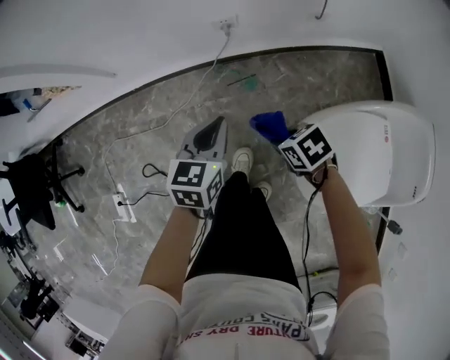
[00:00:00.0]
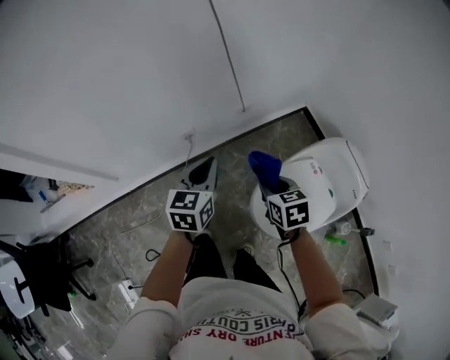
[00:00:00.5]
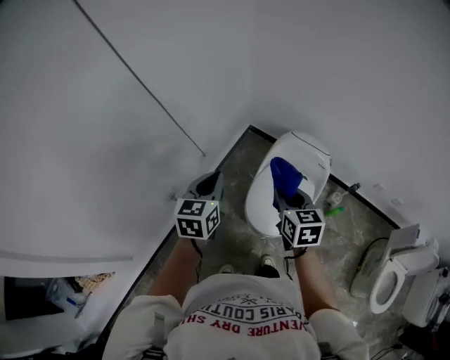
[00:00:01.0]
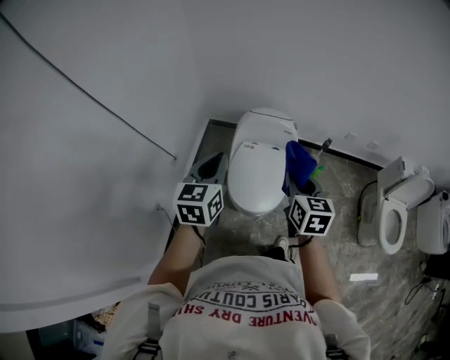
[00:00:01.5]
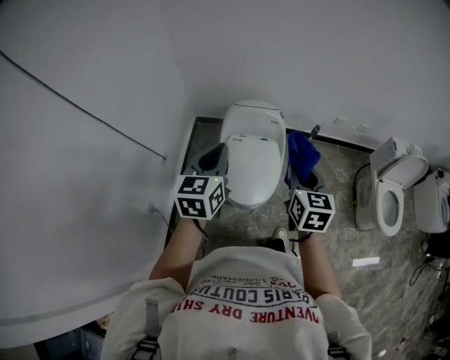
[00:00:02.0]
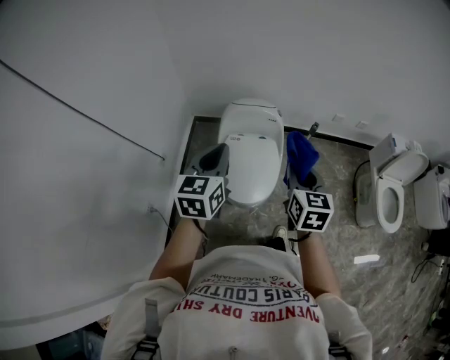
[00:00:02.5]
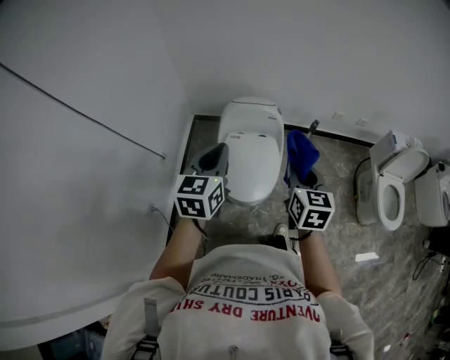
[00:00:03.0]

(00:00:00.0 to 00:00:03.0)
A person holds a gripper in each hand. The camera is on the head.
00:00:00.0 - 00:00:01.5: Both grippers travel together upward, roughly 50 cm. The left gripper changes its angle by approximately 70 degrees. The right gripper tilts its fingers about 40 degrees upward.
00:00:01.5 - 00:00:03.0: Both grippers travel together to the right, some 5 cm.

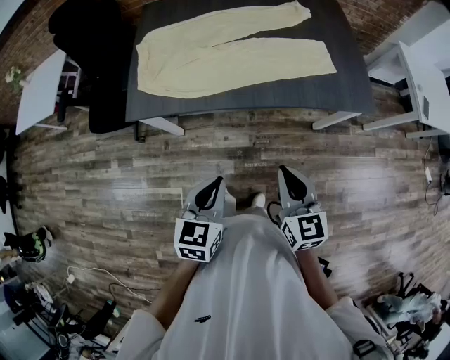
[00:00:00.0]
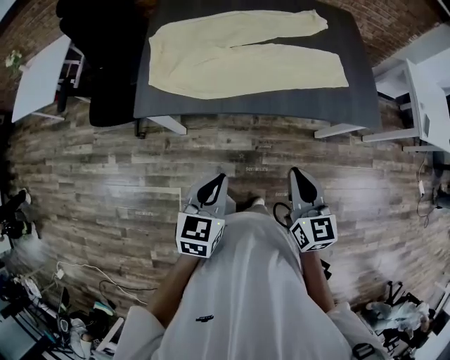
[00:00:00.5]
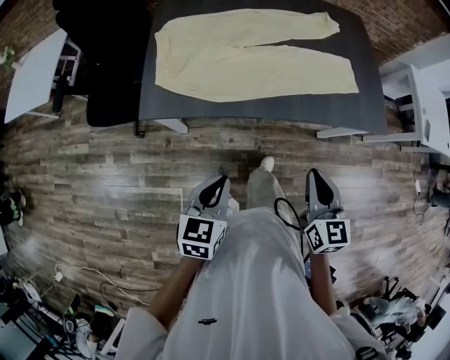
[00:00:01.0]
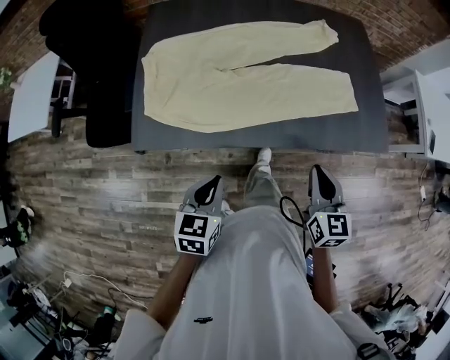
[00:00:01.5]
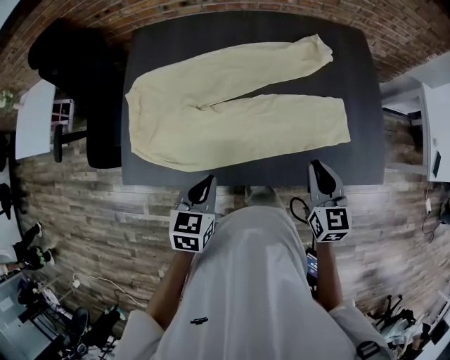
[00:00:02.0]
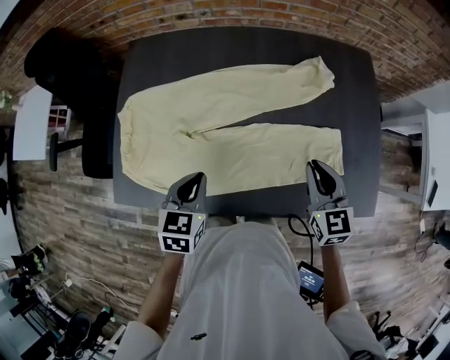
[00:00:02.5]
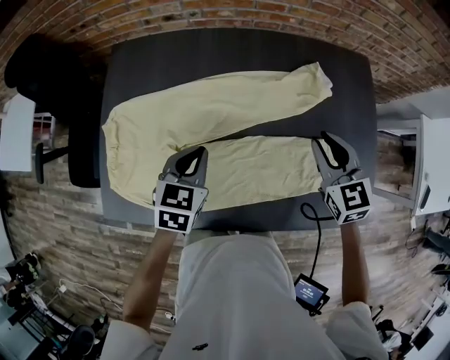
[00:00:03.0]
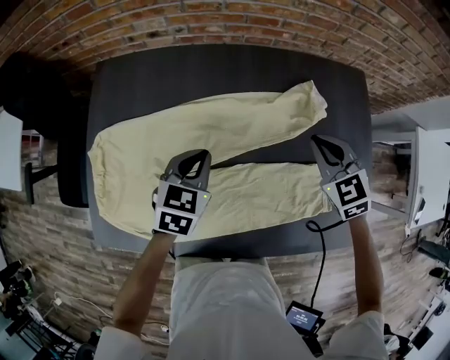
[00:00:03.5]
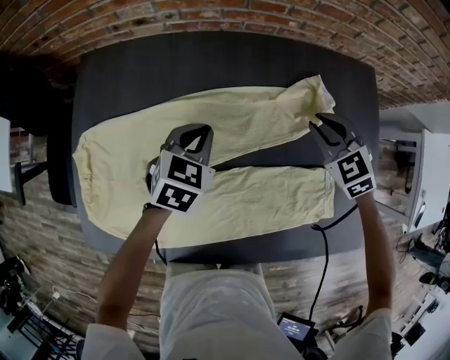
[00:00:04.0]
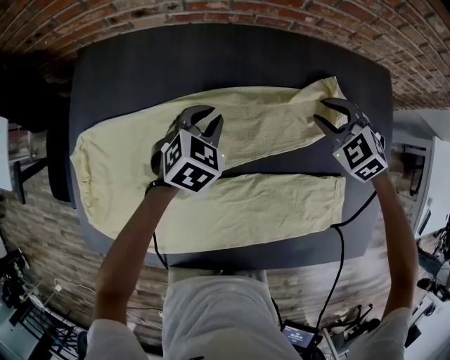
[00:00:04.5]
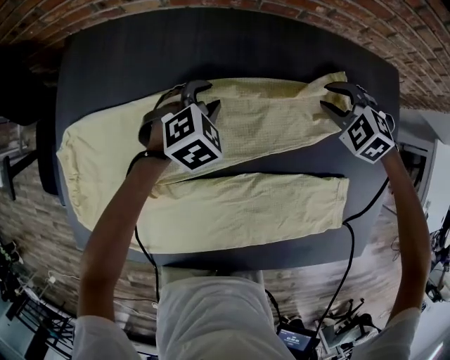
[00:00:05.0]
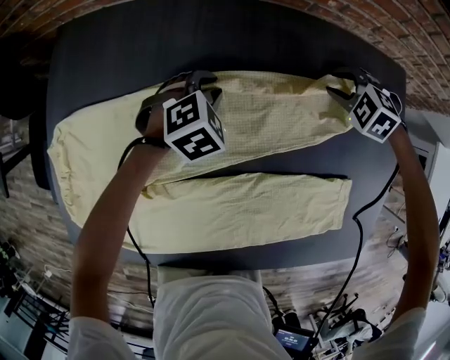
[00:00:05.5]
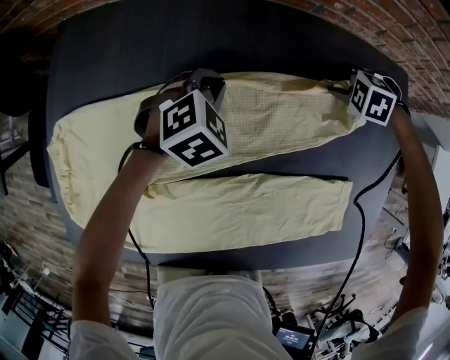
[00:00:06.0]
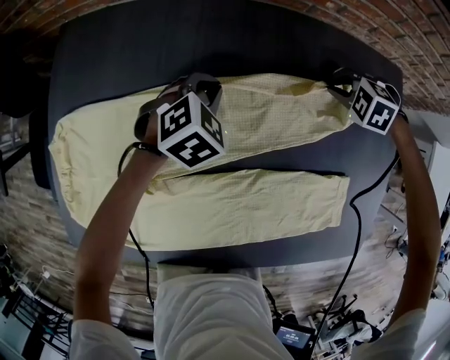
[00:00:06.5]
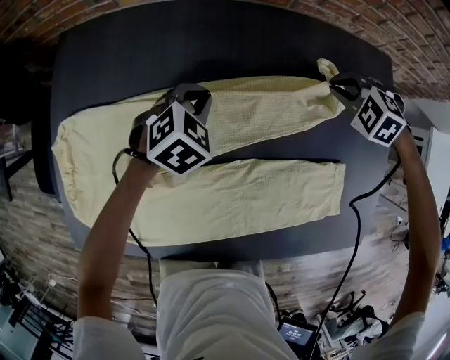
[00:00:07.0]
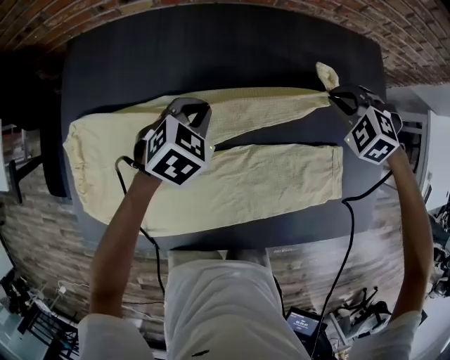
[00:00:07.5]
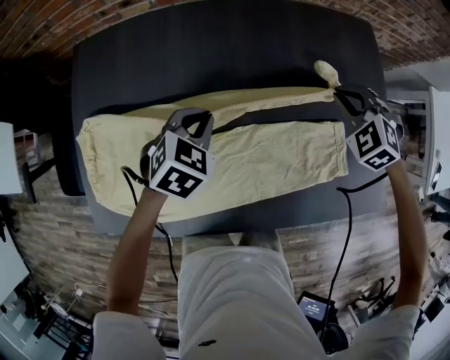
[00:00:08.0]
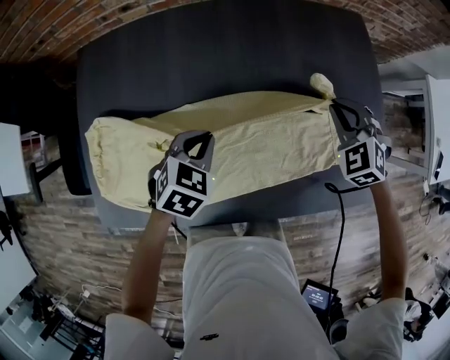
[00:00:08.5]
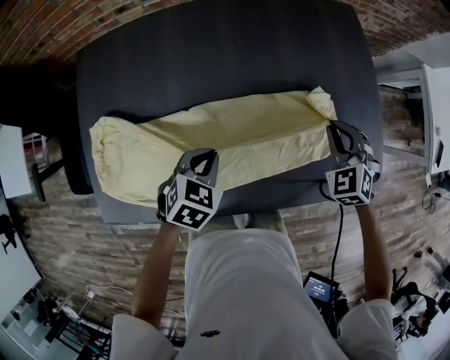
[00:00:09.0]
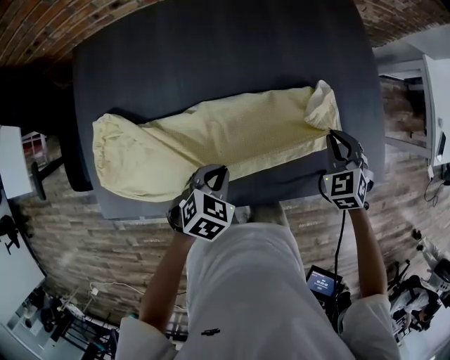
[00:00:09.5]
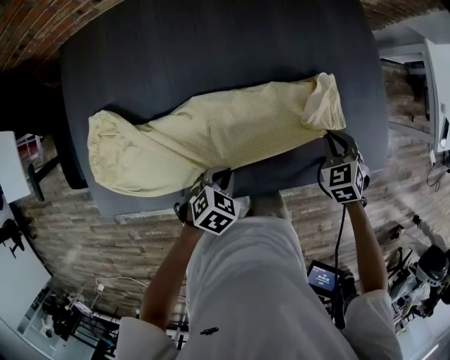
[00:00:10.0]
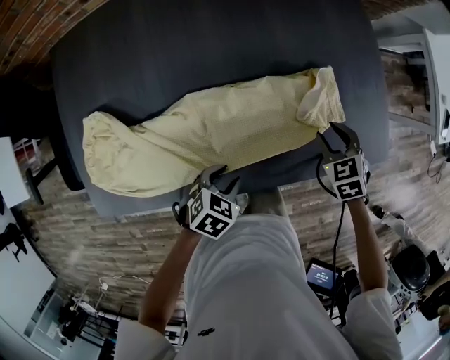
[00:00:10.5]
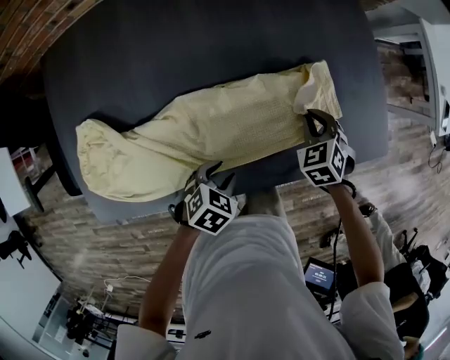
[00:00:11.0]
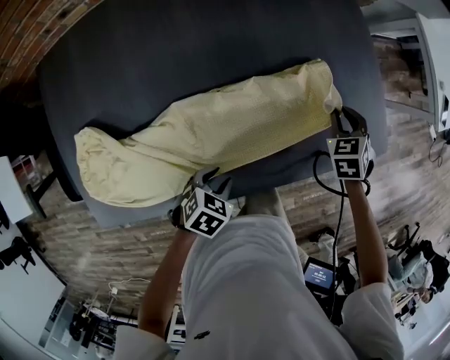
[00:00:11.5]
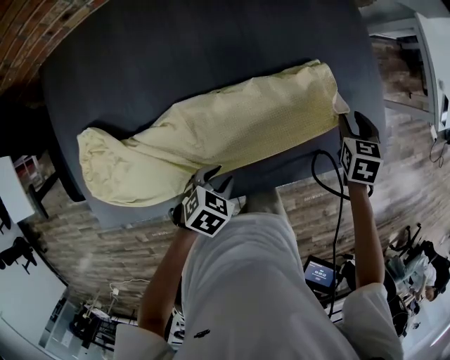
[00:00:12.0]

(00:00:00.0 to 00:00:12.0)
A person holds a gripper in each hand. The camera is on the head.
00:00:00.0 - 00:00:02.0: The grippers both shift forward by roughly 35 cm.
00:00:02.0 - 00:00:04.0: The two grippers go approximately 40 cm forward. The right gripper swivels roughly 50 degrees, while the left gripper rotates about 20 degrees.
00:00:04.0 - 00:00:06.0: Both grippers move downward, some 15 cm. The right gripper tilts its fingers roughly 40 degrees downward. The left gripper turns by roughly 30 degrees, and opens and closes again.
00:00:06.0 - 00:00:08.0: The left gripper changes place by some 20 cm. The right gripper moves about 25 cm, and tips its fingers upward by some 30 degrees.
00:00:08.0 - 00:00:10.0: The two grippers go some 30 cm backward, to the right and downward. The right gripper turns by some 40 degrees.
00:00:10.0 - 00:00:12.0: The left gripper opens up. Meanwhile the right gripper goes some 10 cm forward and to the right, rotates some 40 degrees, and opens.

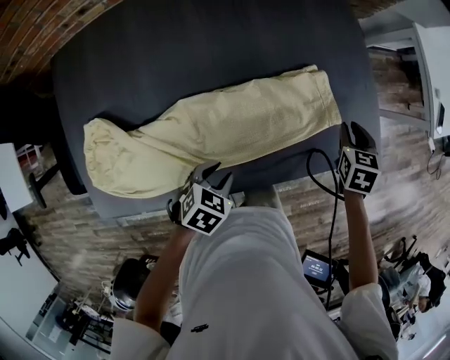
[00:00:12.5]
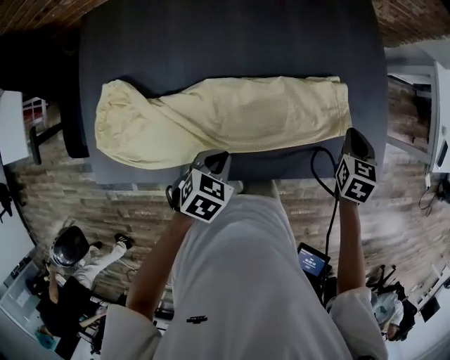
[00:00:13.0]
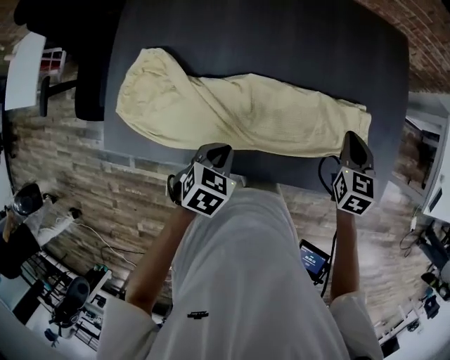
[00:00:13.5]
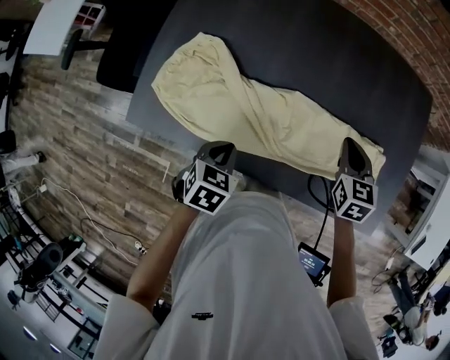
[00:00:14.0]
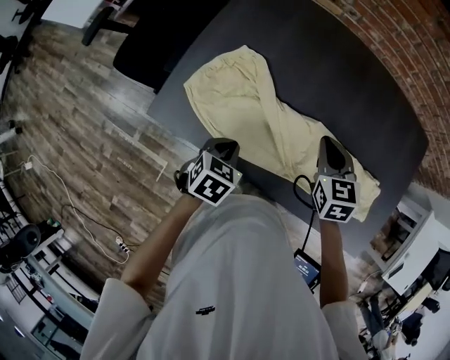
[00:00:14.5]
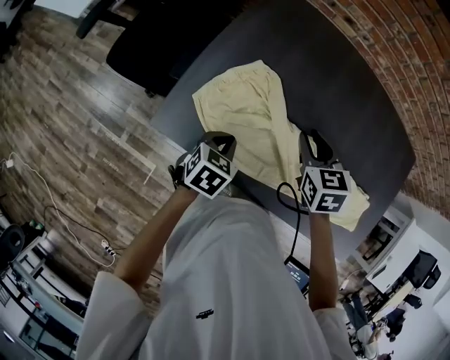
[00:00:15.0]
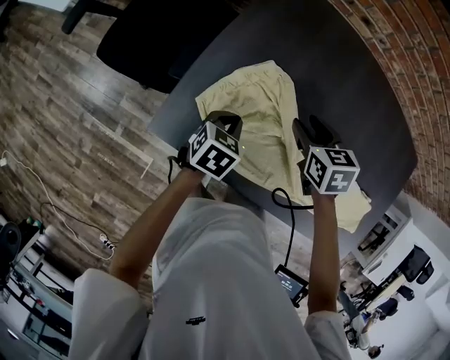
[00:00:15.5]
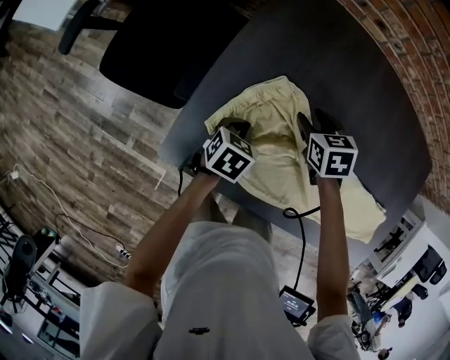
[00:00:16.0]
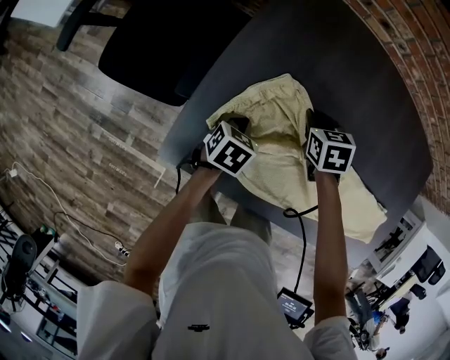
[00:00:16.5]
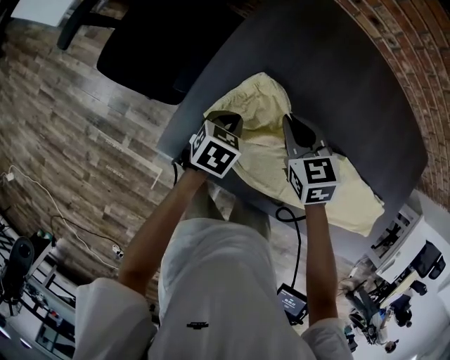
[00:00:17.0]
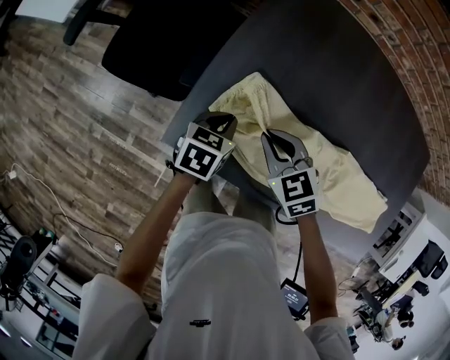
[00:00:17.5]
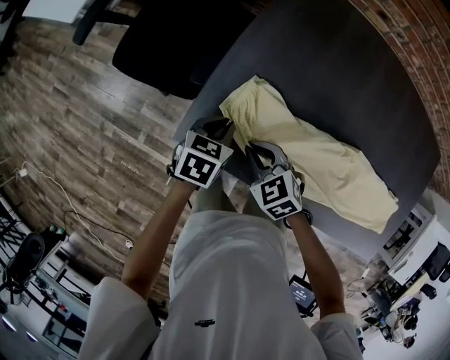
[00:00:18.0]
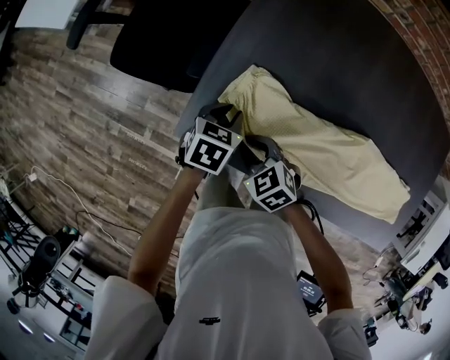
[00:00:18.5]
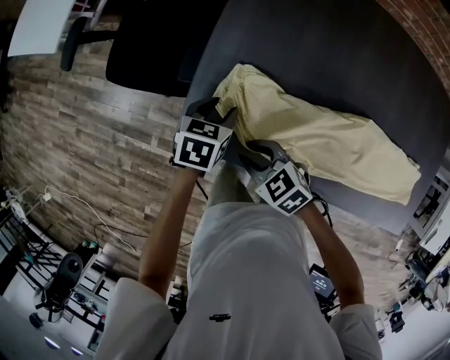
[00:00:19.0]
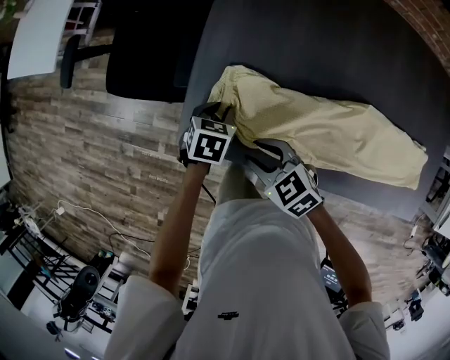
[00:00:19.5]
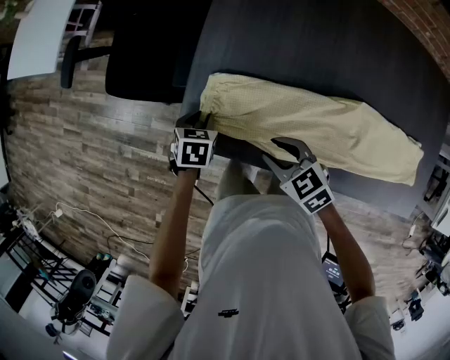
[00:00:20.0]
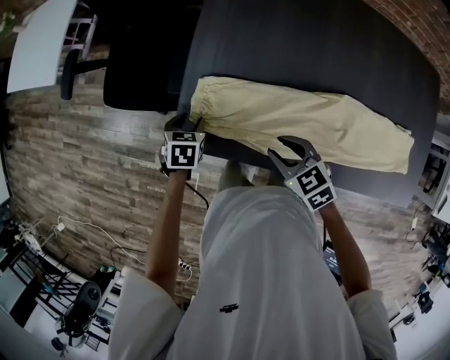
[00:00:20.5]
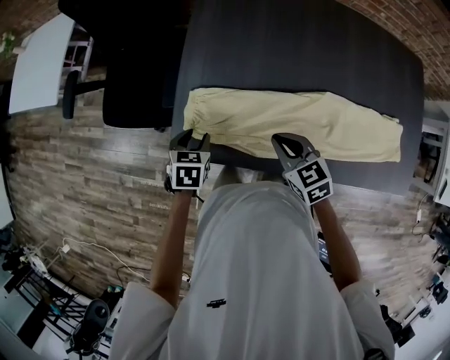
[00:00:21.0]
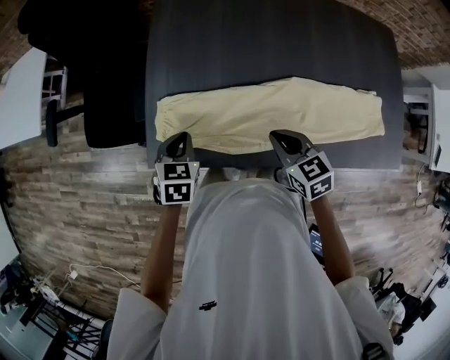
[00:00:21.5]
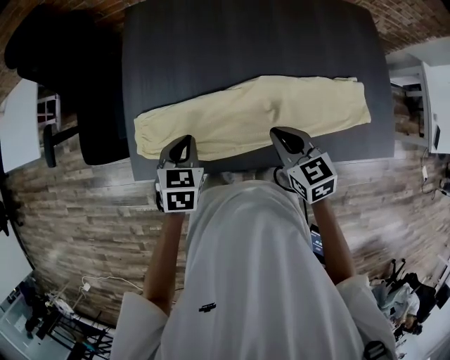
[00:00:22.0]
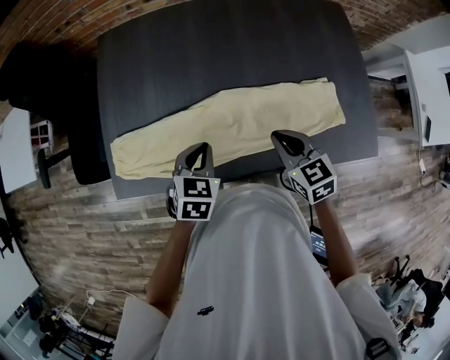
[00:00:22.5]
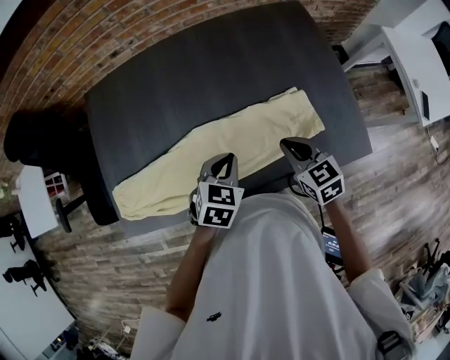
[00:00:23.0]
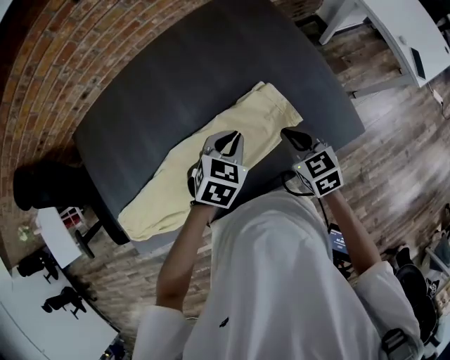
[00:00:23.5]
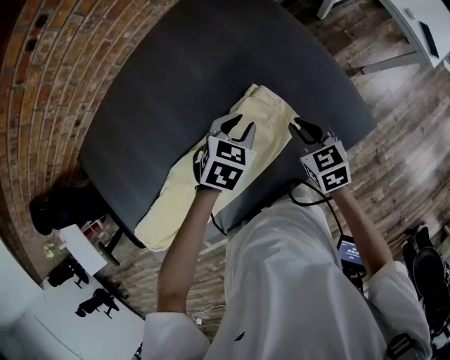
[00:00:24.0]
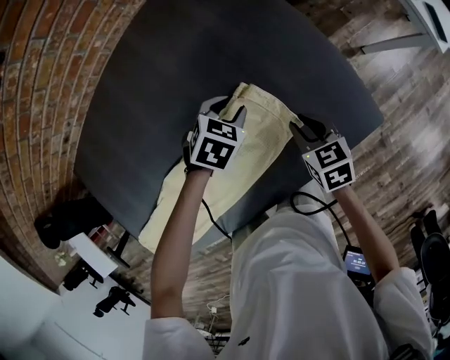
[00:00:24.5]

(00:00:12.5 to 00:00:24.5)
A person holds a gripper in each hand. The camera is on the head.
00:00:12.5 - 00:00:14.5: The left gripper shifts by roughly 30 cm, changes its angle by roughly 50 degrees, and closes up. The right gripper moves about 50 cm, and swivels about 60 degrees.
00:00:14.5 - 00:00:16.5: The right gripper travels to the left, downward and forward by roughly 30 cm, changes its angle by roughly 20 degrees, and opens, then closes once more. Meanwhile the left gripper shifts about 25 cm forward, to the left and downward.
00:00:16.5 - 00:00:18.5: The left gripper moves to the left, roughly 5 cm, and opens. The right gripper travels backward and to the left by roughly 30 cm, and rotates about 40 degrees.
00:00:18.5 - 00:00:20.5: The left gripper shifts about 5 cm to the left, and opens. The right gripper heads to the right, upward and backward, covering roughly 15 cm.
00:00:20.5 - 00:00:22.5: The left gripper moves about 40 cm, rotates some 30 degrees, and closes its fingers, while the right gripper moves some 35 cm, swivels about 30 degrees, and closes.
00:00:22.5 - 00:00:24.5: The left gripper shifts by about 50 cm, swivels some 50 degrees, and opens up. Meanwhile the right gripper shifts by roughly 40 cm, and turns by about 40 degrees.
